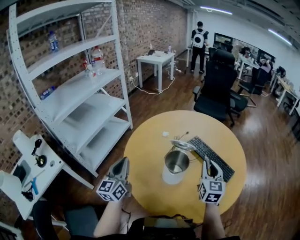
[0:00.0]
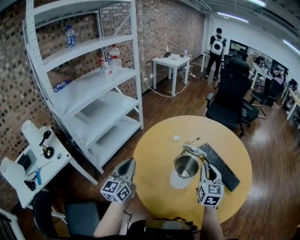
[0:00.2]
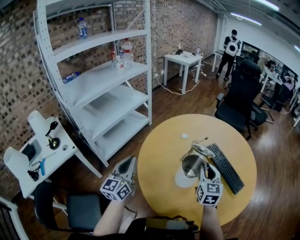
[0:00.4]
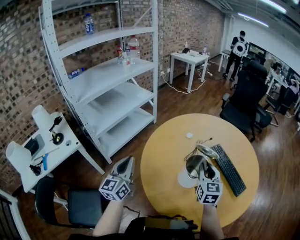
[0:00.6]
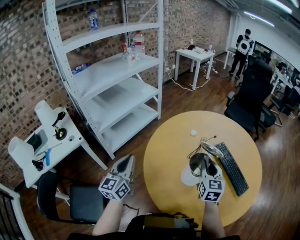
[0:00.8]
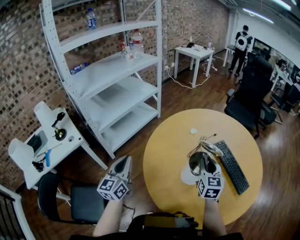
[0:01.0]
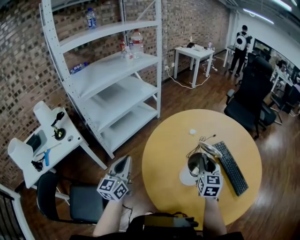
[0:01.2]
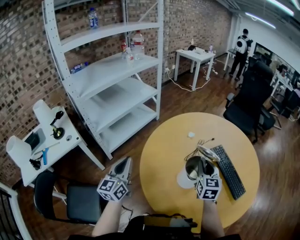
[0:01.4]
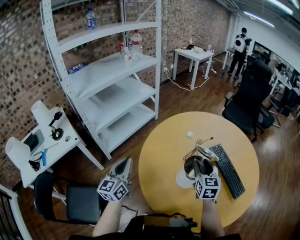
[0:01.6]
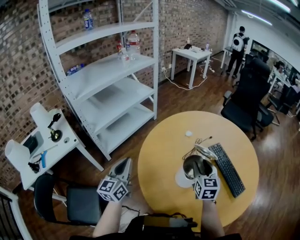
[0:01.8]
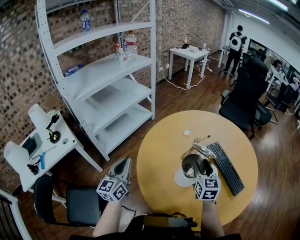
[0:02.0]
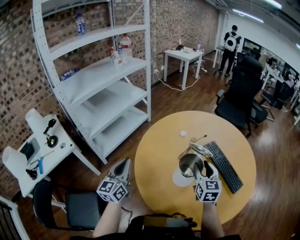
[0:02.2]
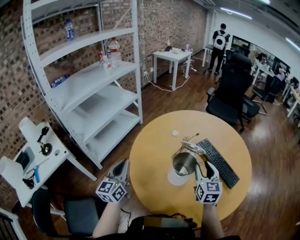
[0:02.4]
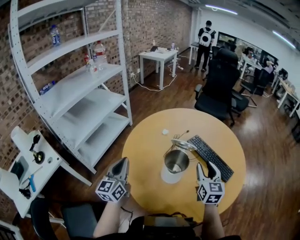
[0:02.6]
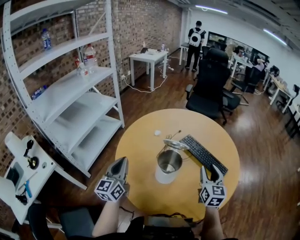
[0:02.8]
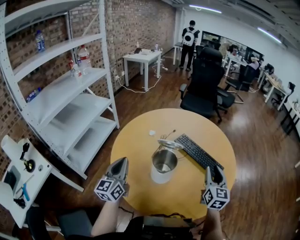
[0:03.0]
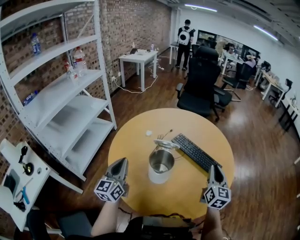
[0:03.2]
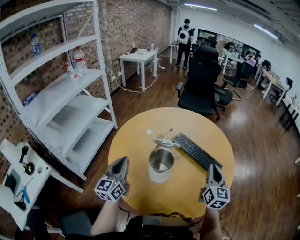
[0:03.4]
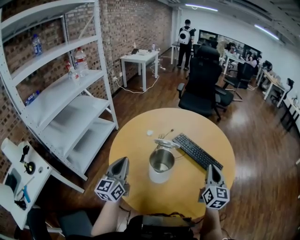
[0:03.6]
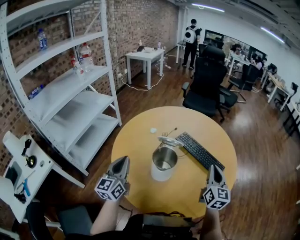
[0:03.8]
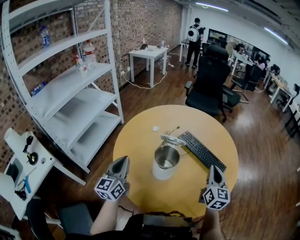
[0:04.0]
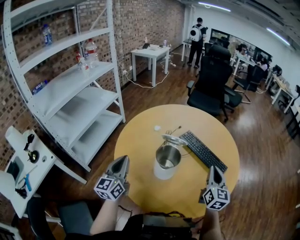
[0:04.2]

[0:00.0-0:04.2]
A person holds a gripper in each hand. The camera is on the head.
0:00.0 to 0:01.4: The left gripper is displaced to the left by roughly 5 cm; the right gripper moves to the left and forward, about 15 cm, and turns by roughly 20 degrees.
0:01.4 to 0:02.8: The right gripper moves to the right and backward, about 15 cm, swivels approximately 20 degrees, and opens, while the left gripper goes some 10 cm to the right and forward.
0:02.8 to 0:04.2: The right gripper closes its fingers.

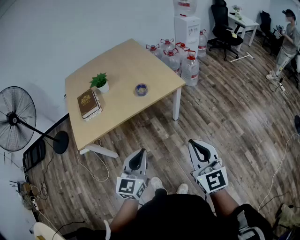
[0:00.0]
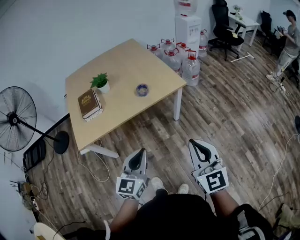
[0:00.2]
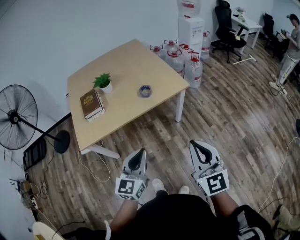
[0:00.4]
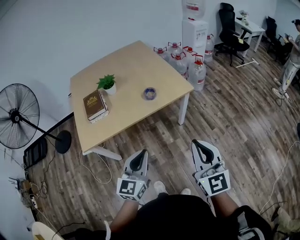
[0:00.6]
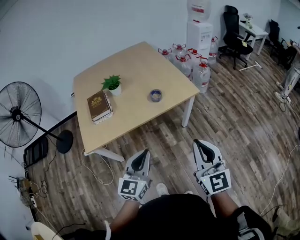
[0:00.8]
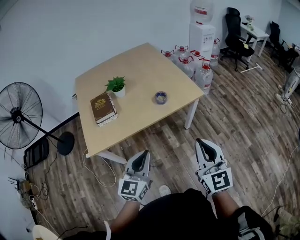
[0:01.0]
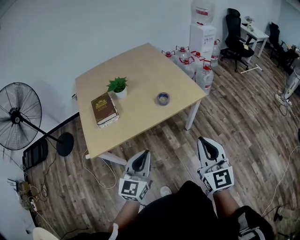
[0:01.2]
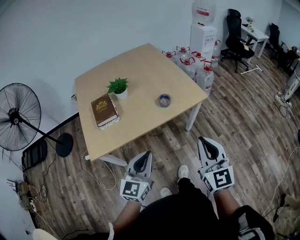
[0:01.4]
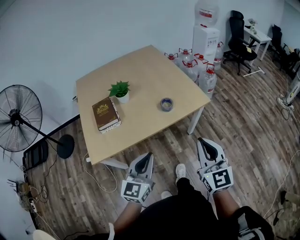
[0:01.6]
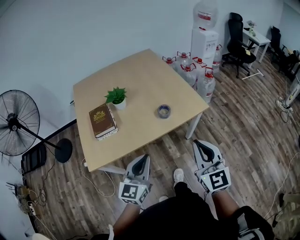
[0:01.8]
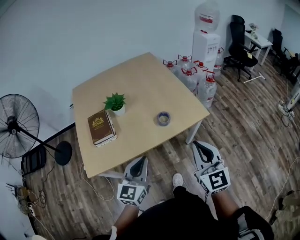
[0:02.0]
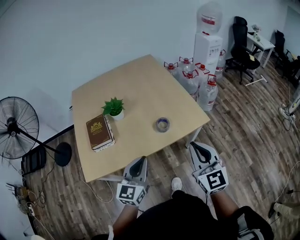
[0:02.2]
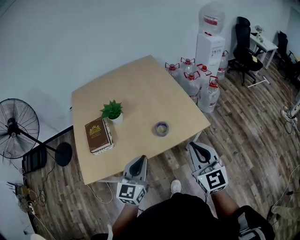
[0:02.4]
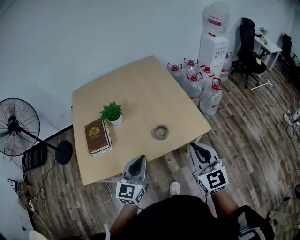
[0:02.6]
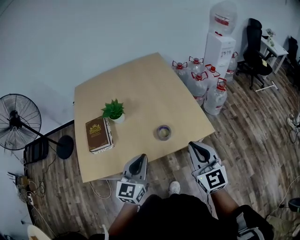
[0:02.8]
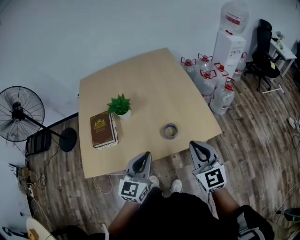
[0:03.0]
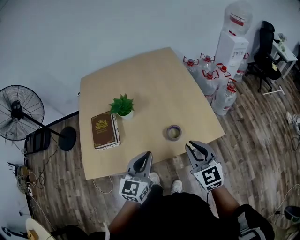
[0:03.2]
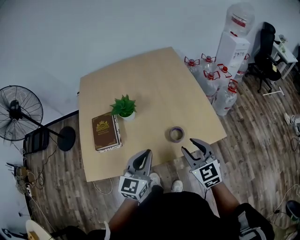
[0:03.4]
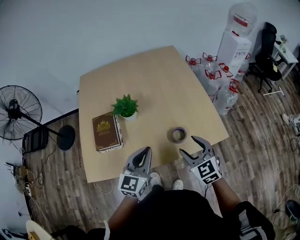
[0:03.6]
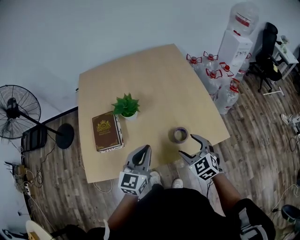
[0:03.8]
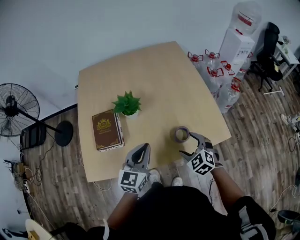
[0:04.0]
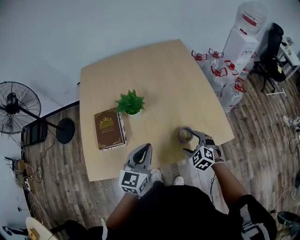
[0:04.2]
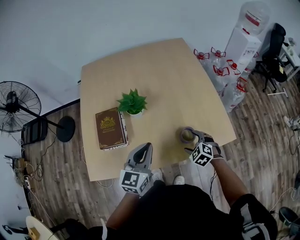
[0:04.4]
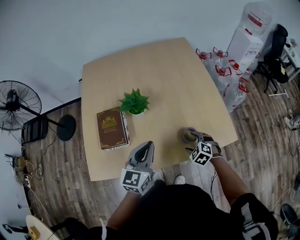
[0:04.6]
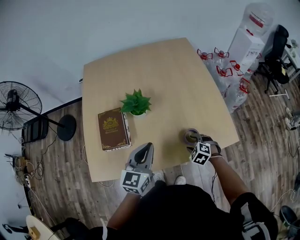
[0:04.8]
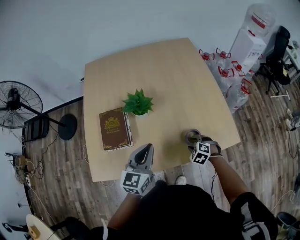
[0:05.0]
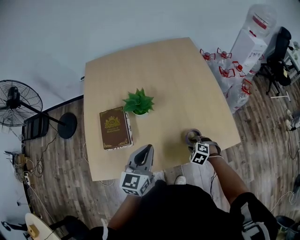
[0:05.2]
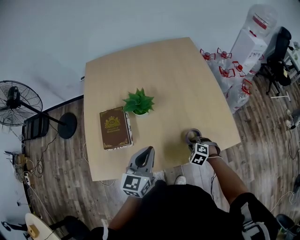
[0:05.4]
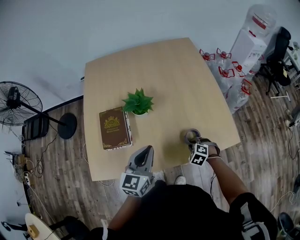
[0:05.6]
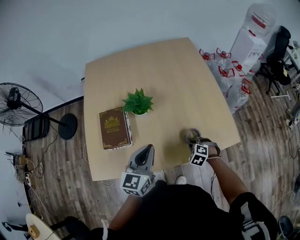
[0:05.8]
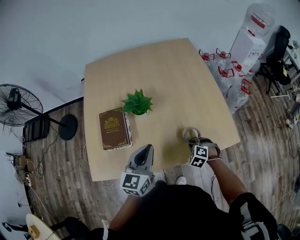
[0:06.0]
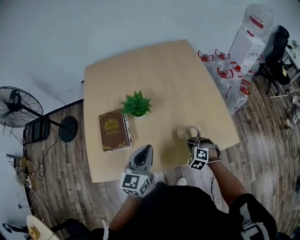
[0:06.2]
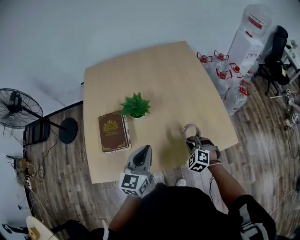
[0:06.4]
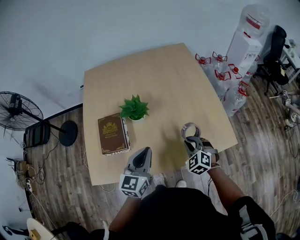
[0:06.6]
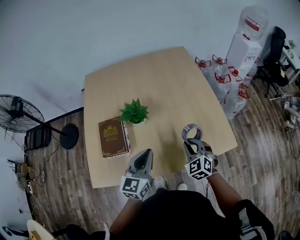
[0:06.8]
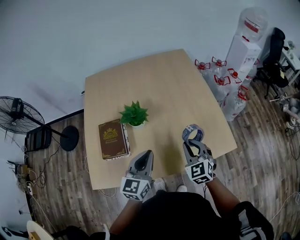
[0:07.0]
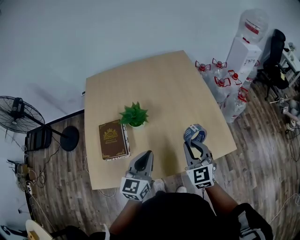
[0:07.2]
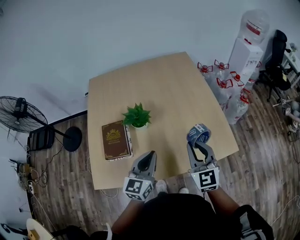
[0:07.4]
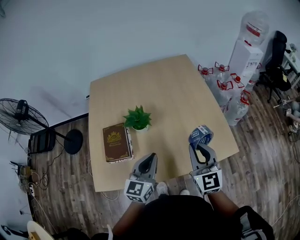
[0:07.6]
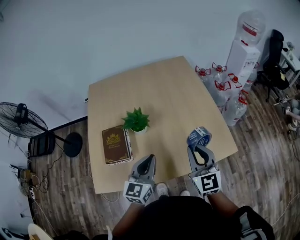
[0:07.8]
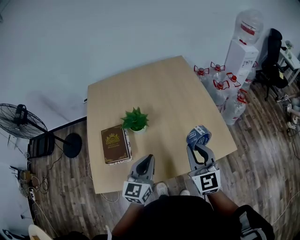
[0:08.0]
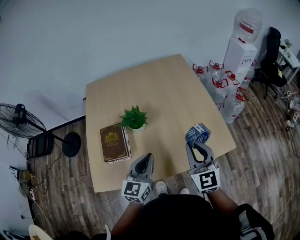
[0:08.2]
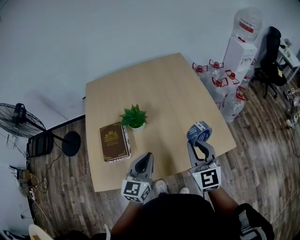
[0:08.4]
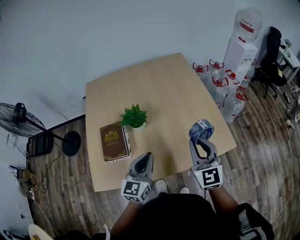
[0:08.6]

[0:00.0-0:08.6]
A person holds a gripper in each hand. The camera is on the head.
0:00.0 to 0:01.4: The grippers both shift to the left and forward by approximately 15 cm.
0:01.4 to 0:02.8: Both grippers travel together forward, some 25 cm.
0:02.8 to 0:04.4: The left gripper goes some 15 cm forward and to the left; the right gripper is displaced downward and forward by about 30 cm, angles its fingers downward, by some 50 degrees, and opens.
0:04.4 to 0:05.8: The right gripper is displaced downward by some 5 cm, and closes its fingers.
0:05.8 to 0:07.2: The right gripper heads upward, covering approximately 25 cm, and points its fingers roughly 50 degrees further upward.
0:07.2 to 0:08.6: The right gripper is displaced upward by approximately 5 cm.

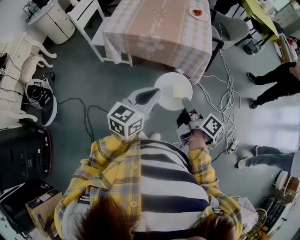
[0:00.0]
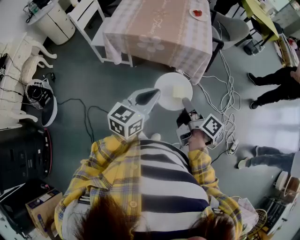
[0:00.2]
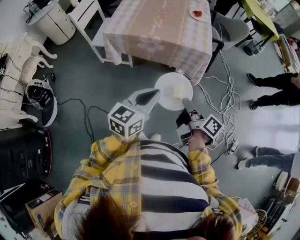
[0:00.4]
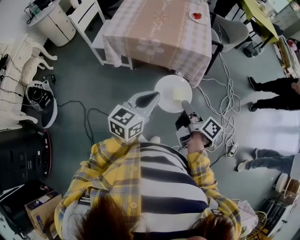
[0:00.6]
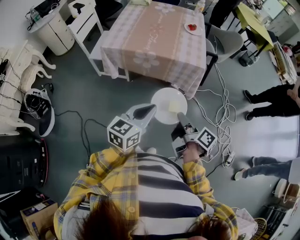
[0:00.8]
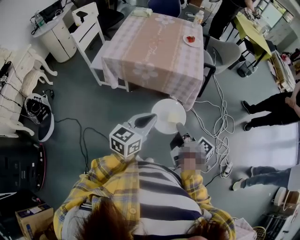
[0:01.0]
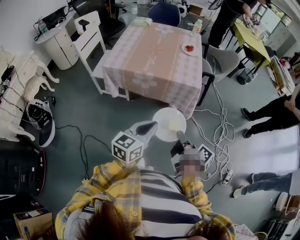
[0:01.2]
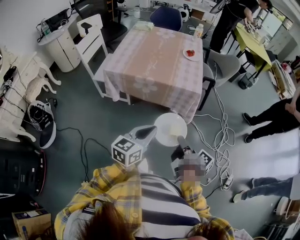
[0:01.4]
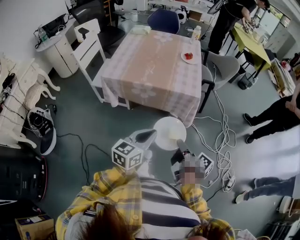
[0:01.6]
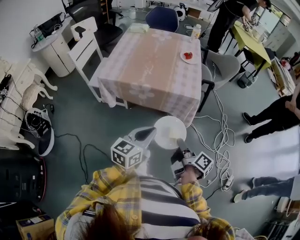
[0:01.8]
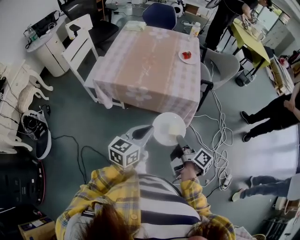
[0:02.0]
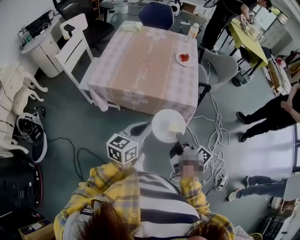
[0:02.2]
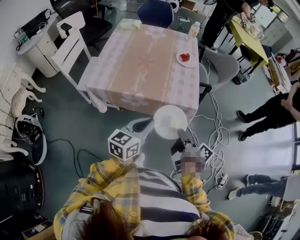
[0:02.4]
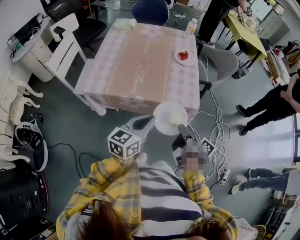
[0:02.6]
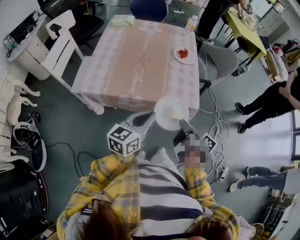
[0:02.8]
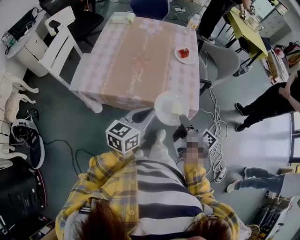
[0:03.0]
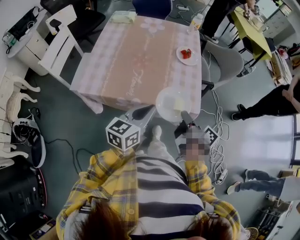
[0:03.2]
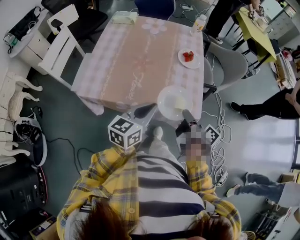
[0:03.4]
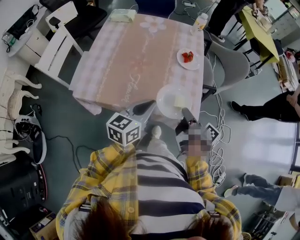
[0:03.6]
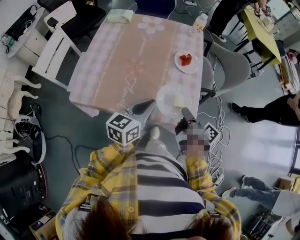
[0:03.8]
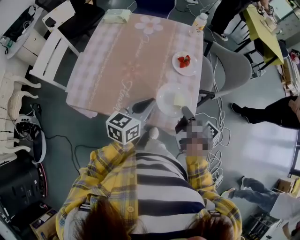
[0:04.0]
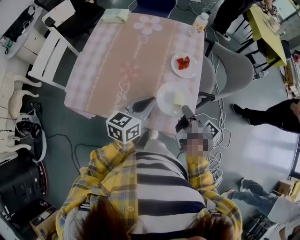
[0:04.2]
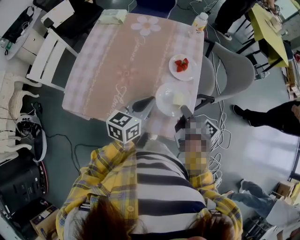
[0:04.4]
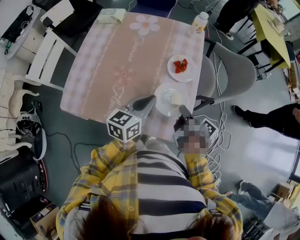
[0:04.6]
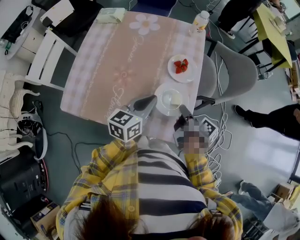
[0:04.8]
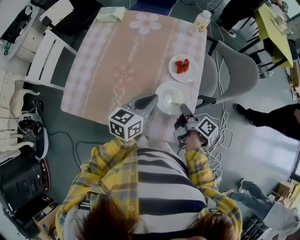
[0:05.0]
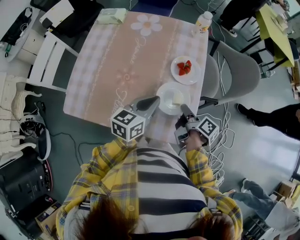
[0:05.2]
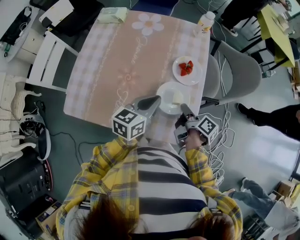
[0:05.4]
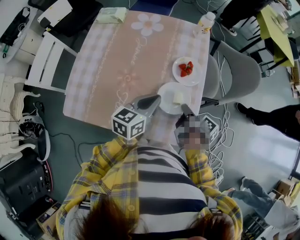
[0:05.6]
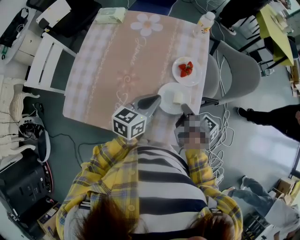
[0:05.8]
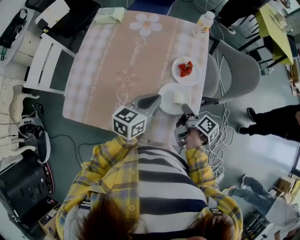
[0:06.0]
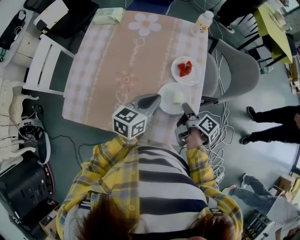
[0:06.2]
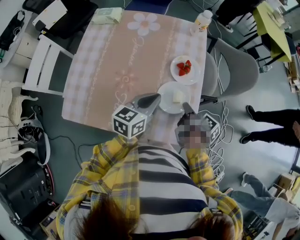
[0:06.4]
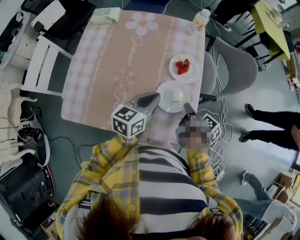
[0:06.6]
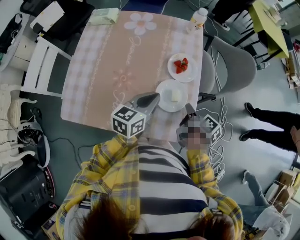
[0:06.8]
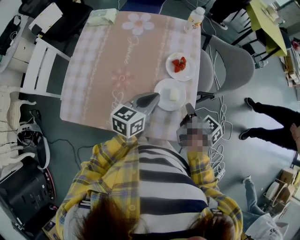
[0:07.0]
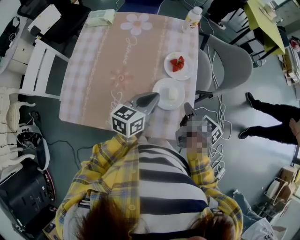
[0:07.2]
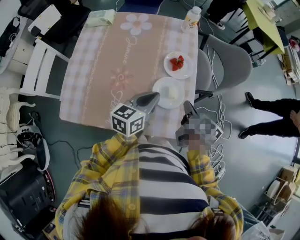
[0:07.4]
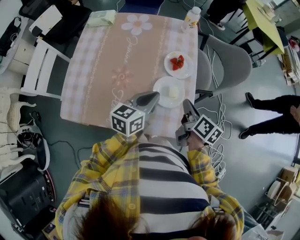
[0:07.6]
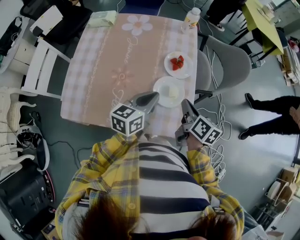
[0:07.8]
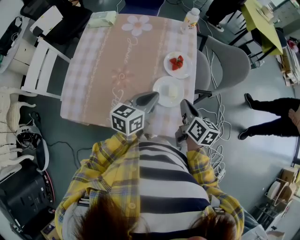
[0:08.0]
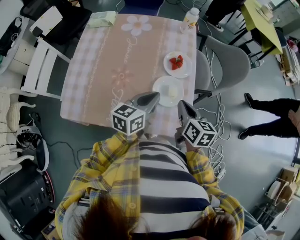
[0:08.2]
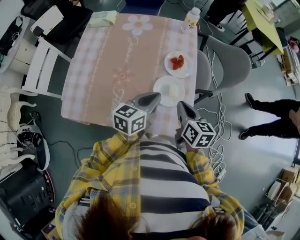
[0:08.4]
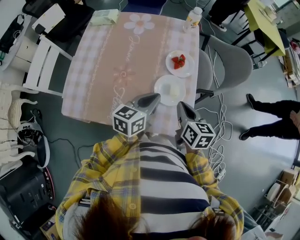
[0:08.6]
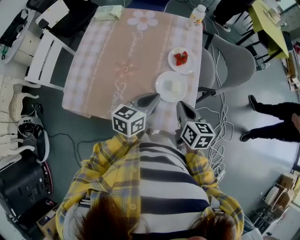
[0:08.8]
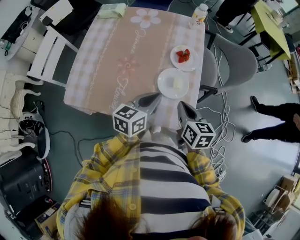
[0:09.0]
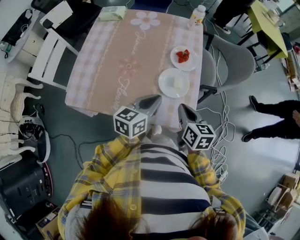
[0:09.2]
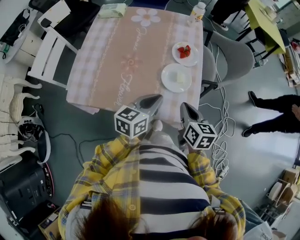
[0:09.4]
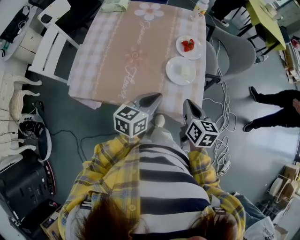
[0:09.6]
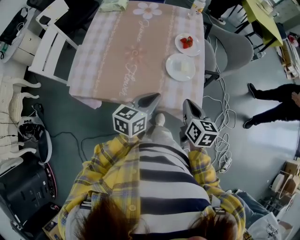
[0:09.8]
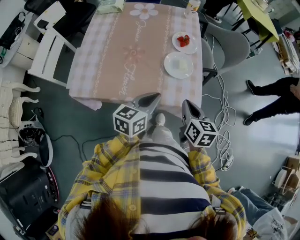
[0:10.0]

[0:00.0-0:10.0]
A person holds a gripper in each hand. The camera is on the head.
0:00.0 to 0:01.4: The grippers move only a little.
0:01.4 to 0:02.8: Both grippers travel together forward, roughly 25 cm.
0:02.8 to 0:04.2: Both grippers move forward, roughly 20 cm.
0:04.2 to 0:05.8: The left gripper goes approximately 5 cm forward. Meanwhile the right gripper heads forward and downward, covering roughly 10 cm.
0:05.8 to 0:07.2: The right gripper changes place by about 5 cm.
0:07.2 to 0:08.6: The right gripper shifts by some 5 cm, and changes its angle by about 40 degrees.
0:08.6 to 0:10.0: Both grippers travel together backward, some 15 cm.

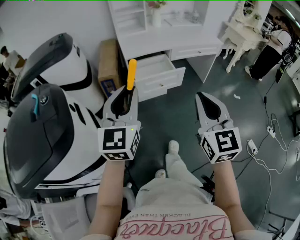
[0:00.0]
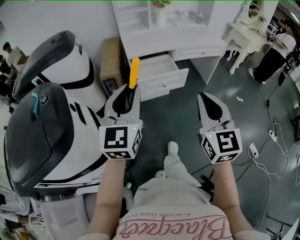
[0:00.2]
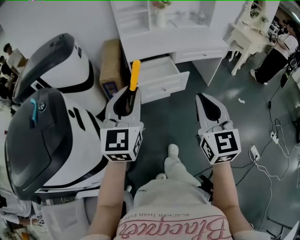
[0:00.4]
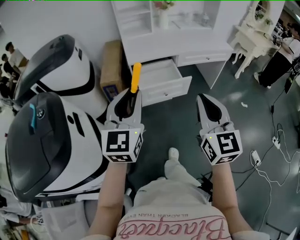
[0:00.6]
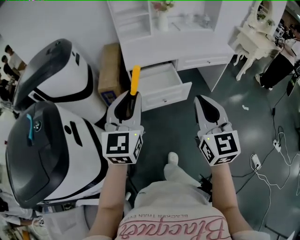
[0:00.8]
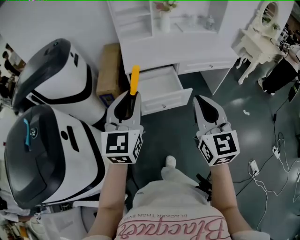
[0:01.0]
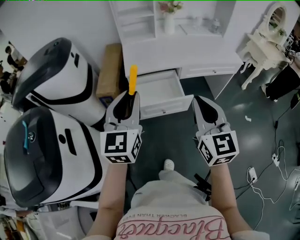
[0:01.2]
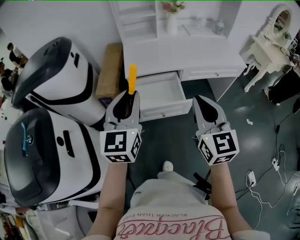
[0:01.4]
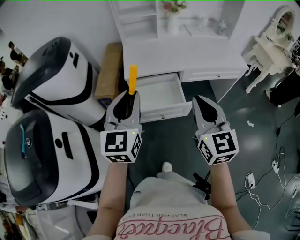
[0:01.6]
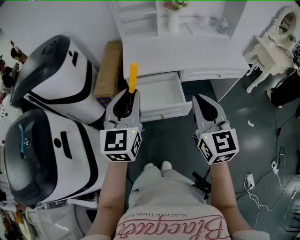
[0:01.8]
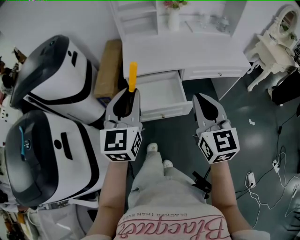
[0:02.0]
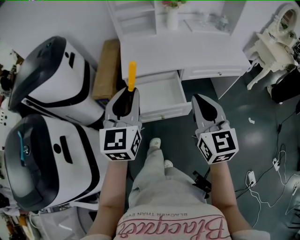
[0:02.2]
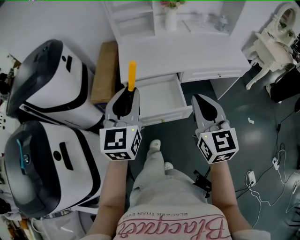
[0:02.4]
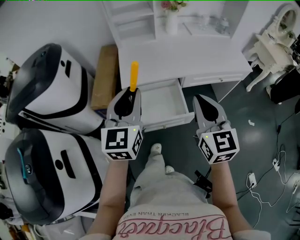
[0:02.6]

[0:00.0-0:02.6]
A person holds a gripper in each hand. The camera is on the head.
0:00.0 to 0:01.2: Both grippers move forward, roughly 25 cm.
0:01.2 to 0:02.6: The grippers both shift forward by some 15 cm.
